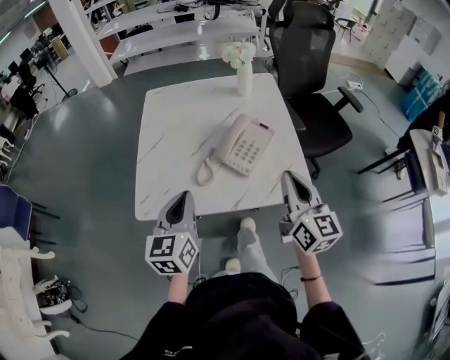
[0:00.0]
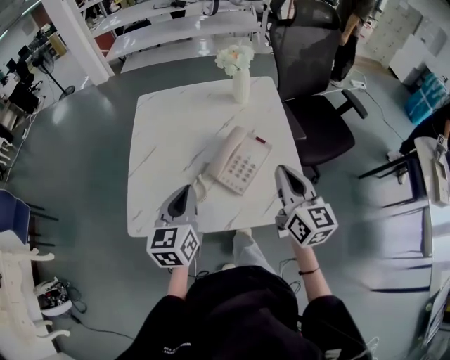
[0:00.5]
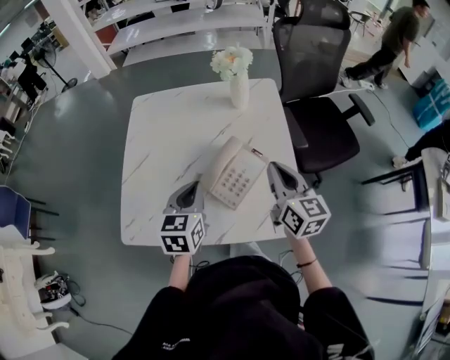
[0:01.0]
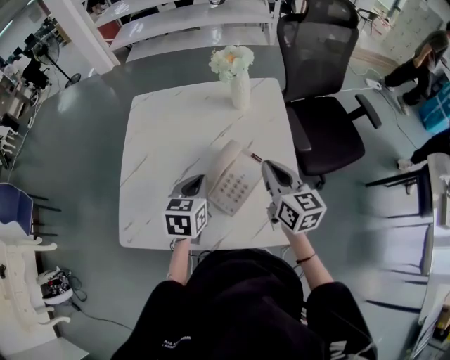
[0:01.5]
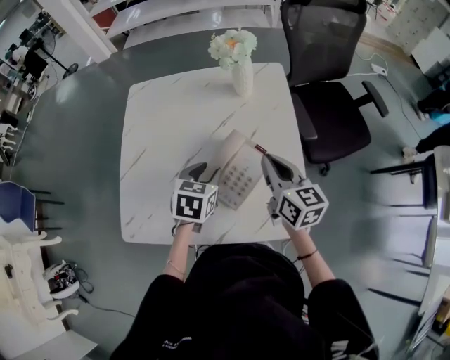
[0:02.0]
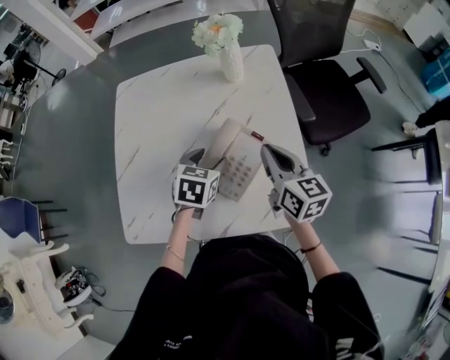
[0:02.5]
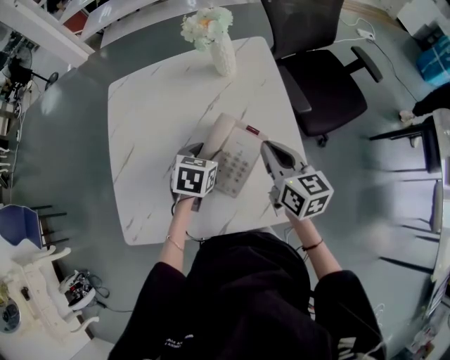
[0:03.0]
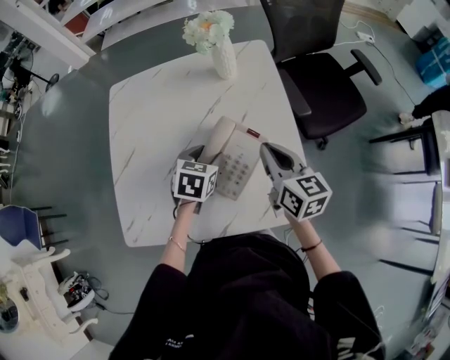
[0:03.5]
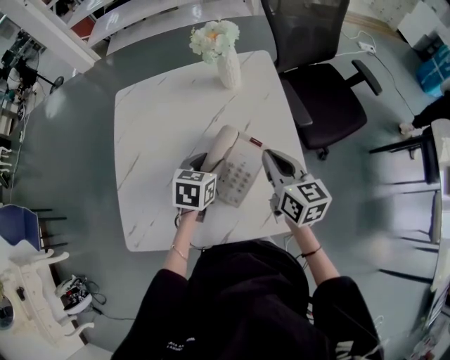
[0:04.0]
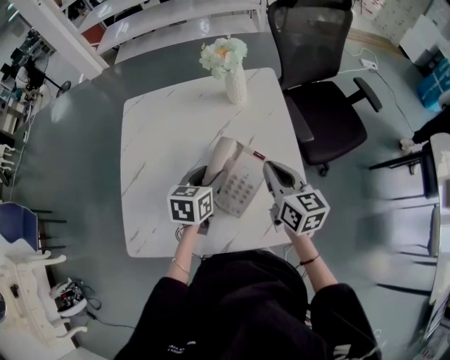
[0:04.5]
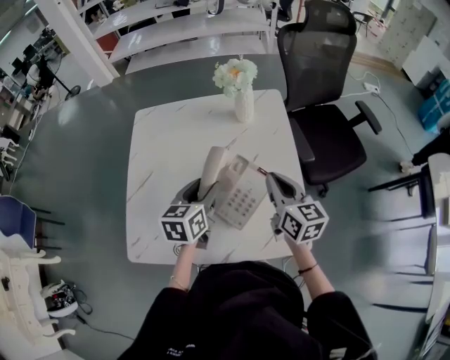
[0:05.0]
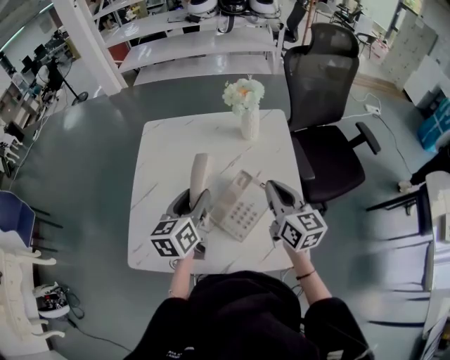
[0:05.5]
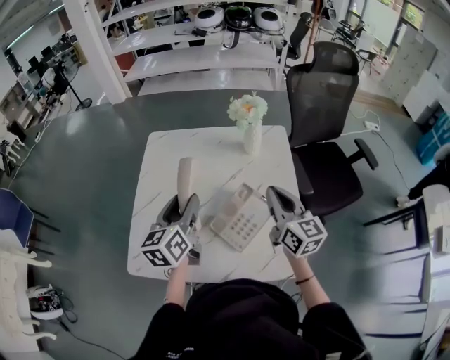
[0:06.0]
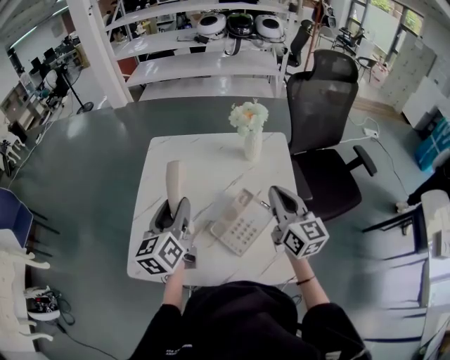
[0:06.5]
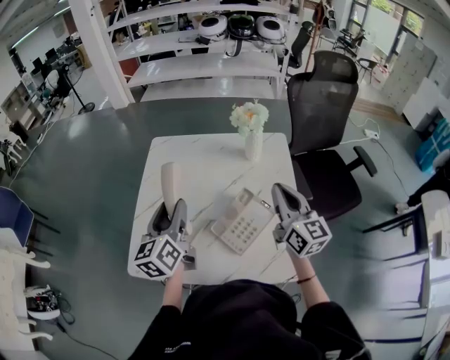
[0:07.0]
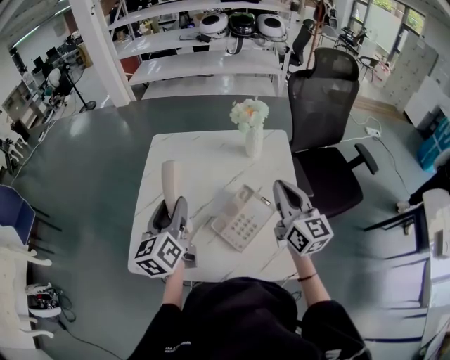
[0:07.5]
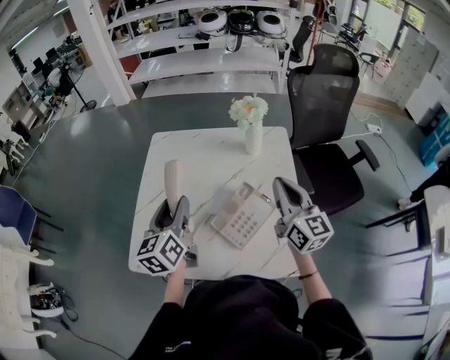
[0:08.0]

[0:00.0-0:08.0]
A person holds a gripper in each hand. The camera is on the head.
0:00.0 to 0:02.0: The left gripper shifts some 30 cm forward, to the right and downward, points its fingers about 30 degrees further downward, and opens up, while the right gripper moves forward and downward, approximately 25 cm.
0:02.0 to 0:04.0: The grippers make only small movements.
0:04.0 to 0:06.0: The left gripper is displaced upward and to the left by roughly 20 cm, and tips its fingers upward by about 30 degrees. Meanwhile the right gripper goes about 10 cm upward.
0:06.0 to 0:08.0: The grippers stay close to where they were, moving slightly.

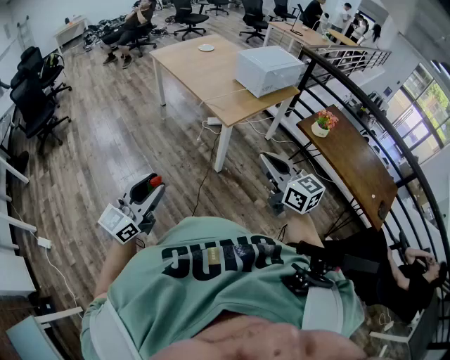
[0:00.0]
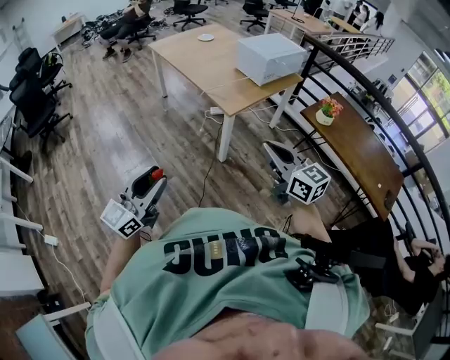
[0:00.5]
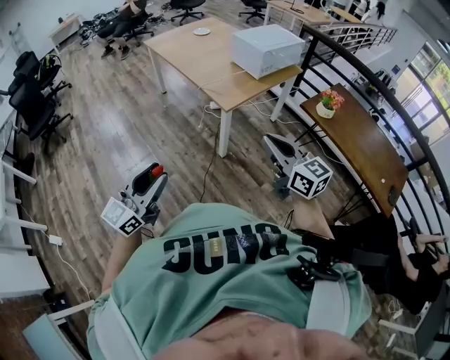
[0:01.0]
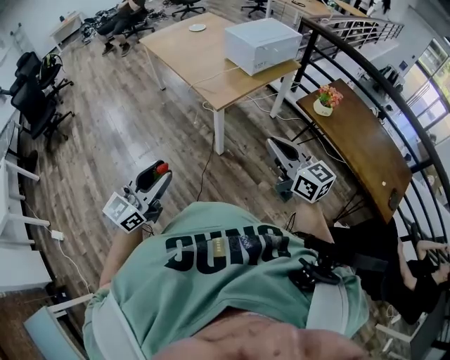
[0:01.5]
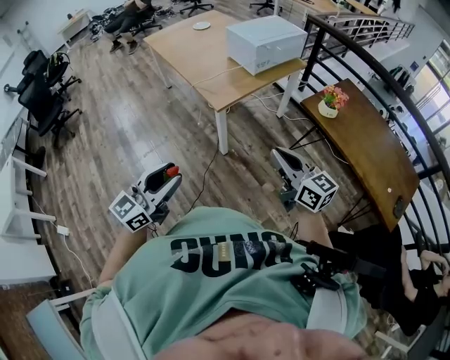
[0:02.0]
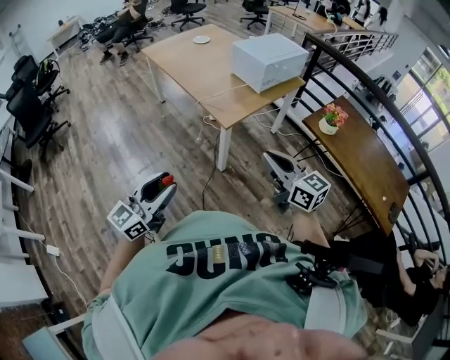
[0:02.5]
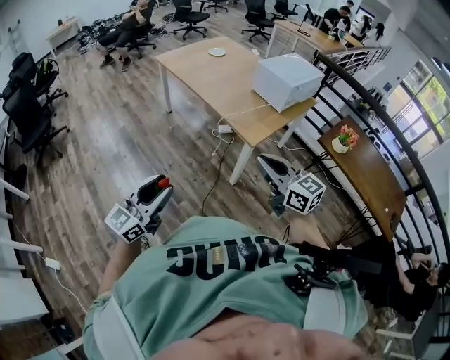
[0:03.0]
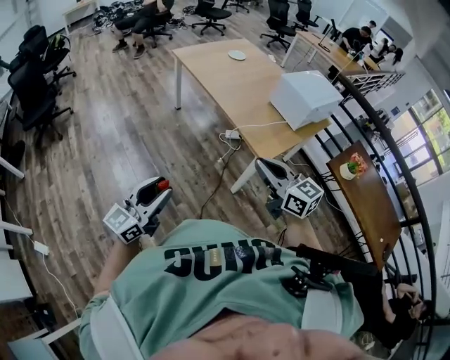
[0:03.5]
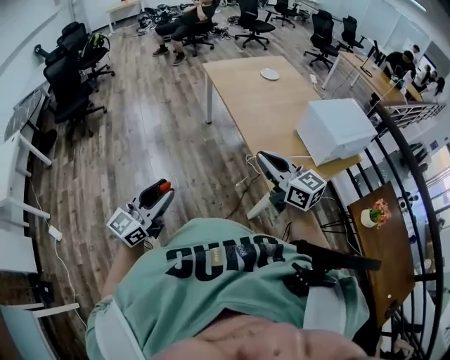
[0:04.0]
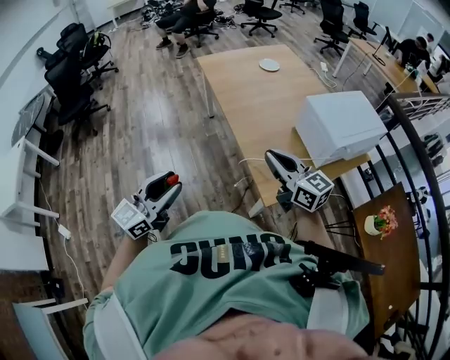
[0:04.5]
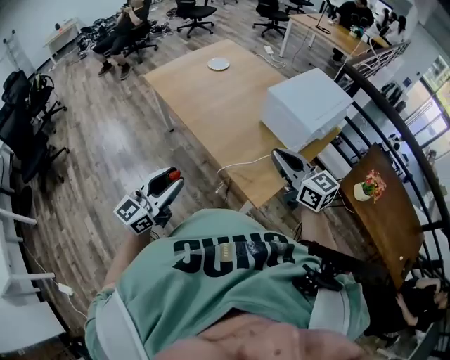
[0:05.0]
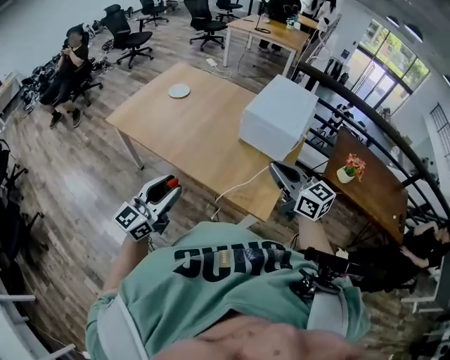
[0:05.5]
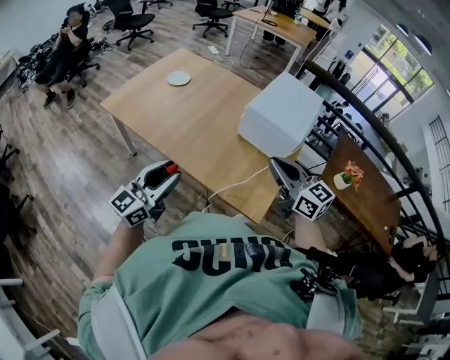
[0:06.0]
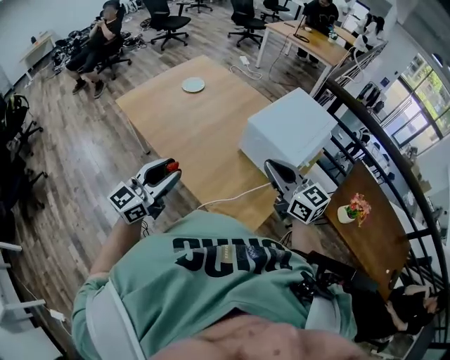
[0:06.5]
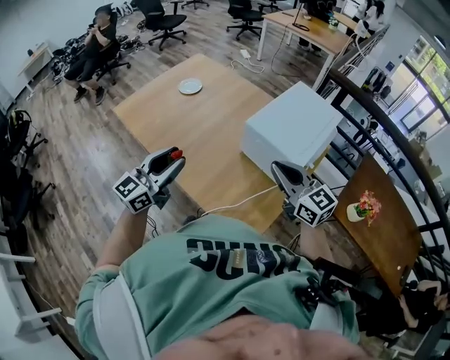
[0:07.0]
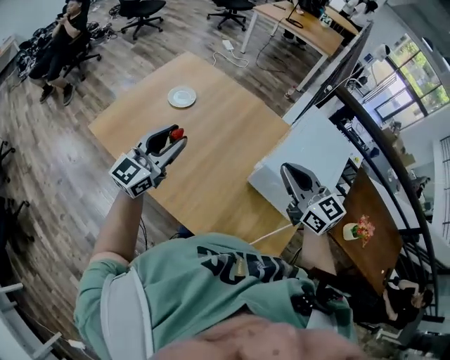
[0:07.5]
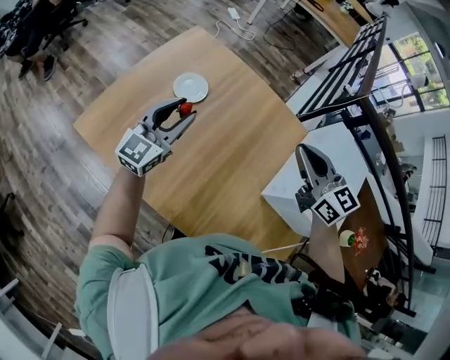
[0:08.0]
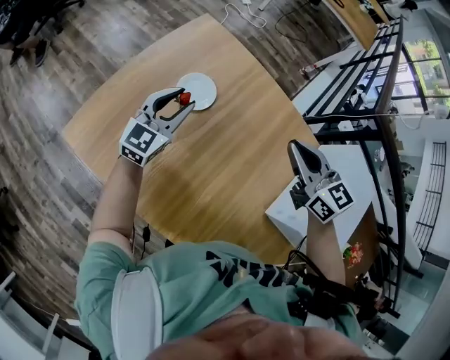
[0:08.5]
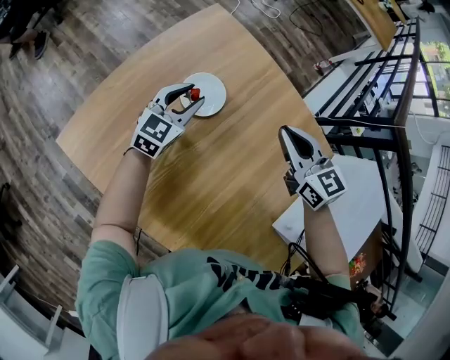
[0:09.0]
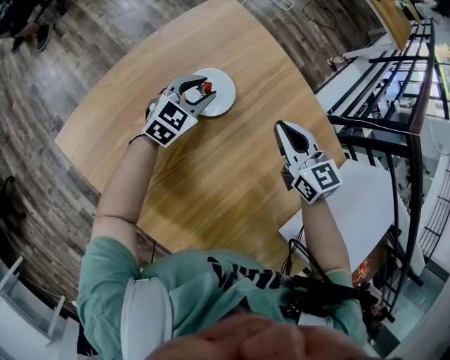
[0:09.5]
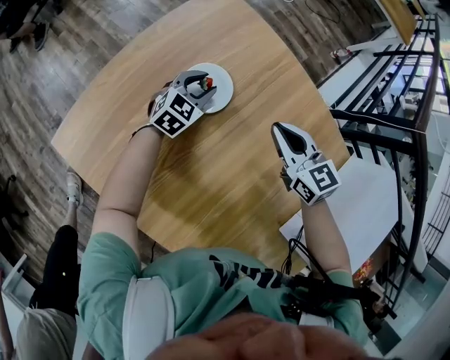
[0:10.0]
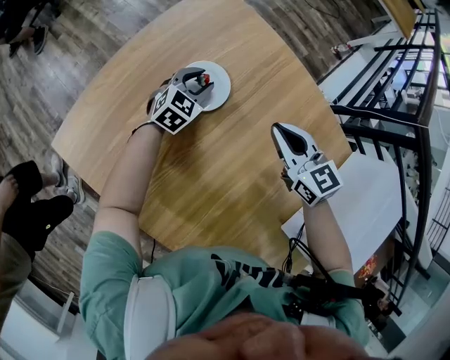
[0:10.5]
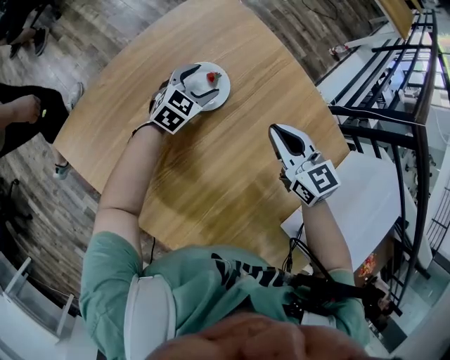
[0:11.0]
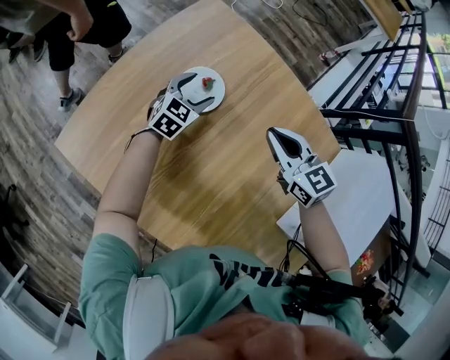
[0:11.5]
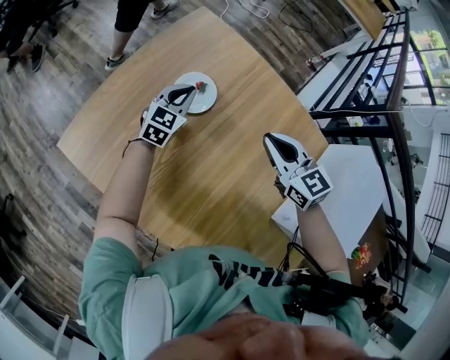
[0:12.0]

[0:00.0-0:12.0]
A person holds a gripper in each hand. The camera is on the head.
0:00.0 to 0:02.0: Both grippers move to the right and forward, about 20 cm.
0:02.0 to 0:04.0: The pair of grippers is taken to the left and forward, roughly 50 cm. The left gripper rotates about 20 degrees. The right gripper changes its angle by about 20 degrees.
0:04.0 to 0:06.0: The left gripper shifts by some 40 cm, and turns by some 40 degrees, while the right gripper ends up approximately 25 cm from where it was, and turns by roughly 40 degrees.
0:06.0 to 0:08.0: The two grippers travel together, forward, roughly 60 cm.
0:08.0 to 0:10.0: Both grippers travel together downward and forward, approximately 35 cm. The left gripper angles its fingers downward, by about 40 degrees.
0:10.0 to 0:12.0: The right gripper is displaced upward and backward by about 10 cm; the left gripper goes about 10 cm upward, and closes its fingers.

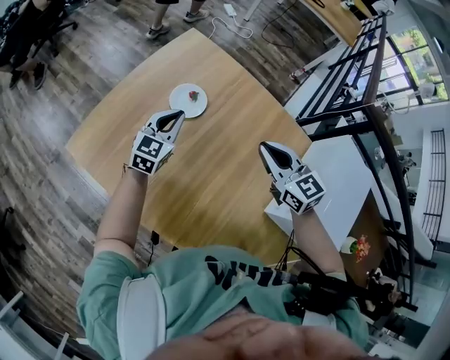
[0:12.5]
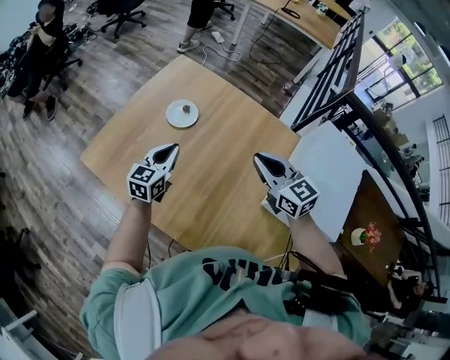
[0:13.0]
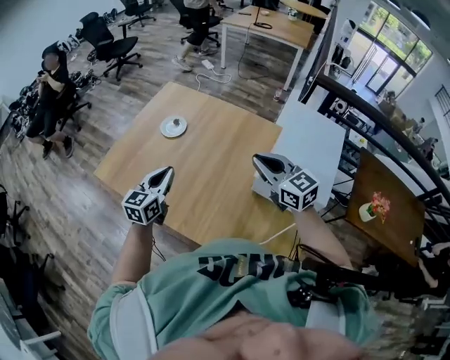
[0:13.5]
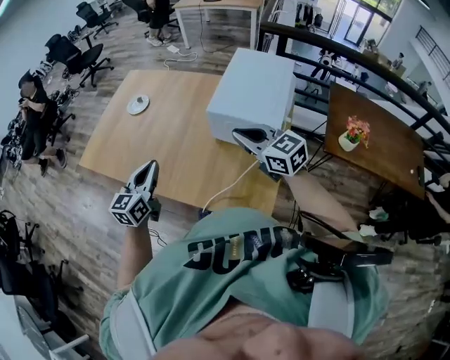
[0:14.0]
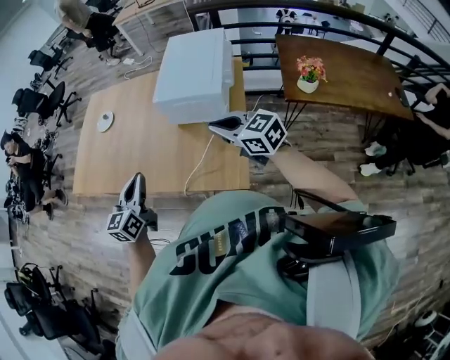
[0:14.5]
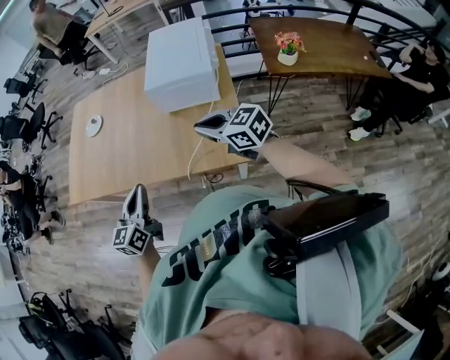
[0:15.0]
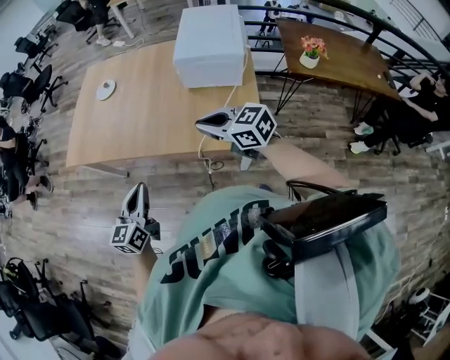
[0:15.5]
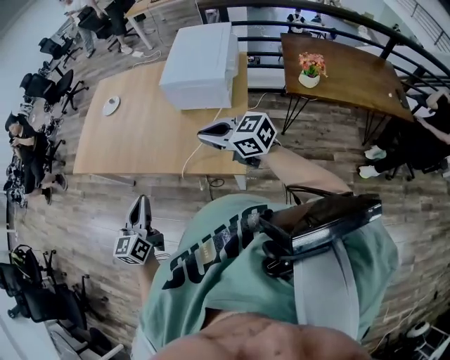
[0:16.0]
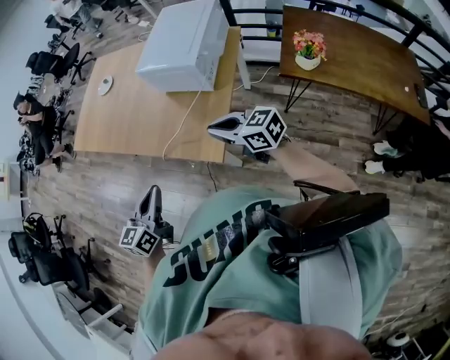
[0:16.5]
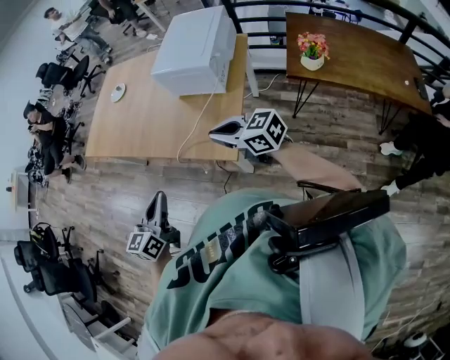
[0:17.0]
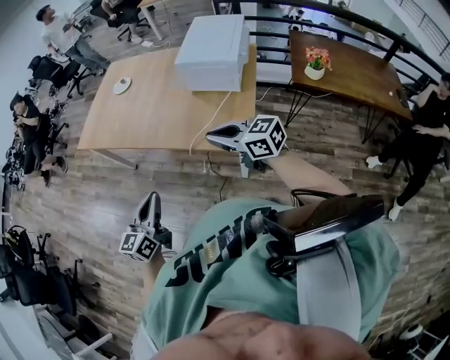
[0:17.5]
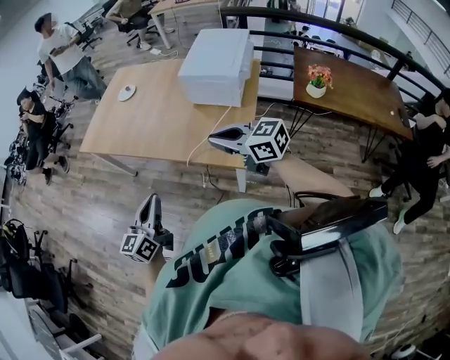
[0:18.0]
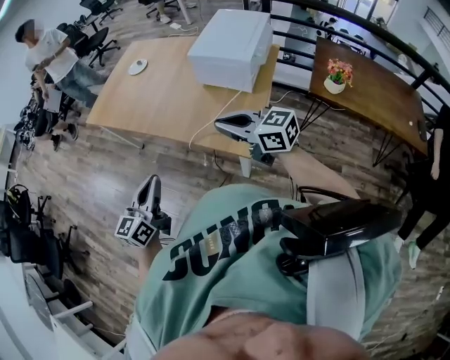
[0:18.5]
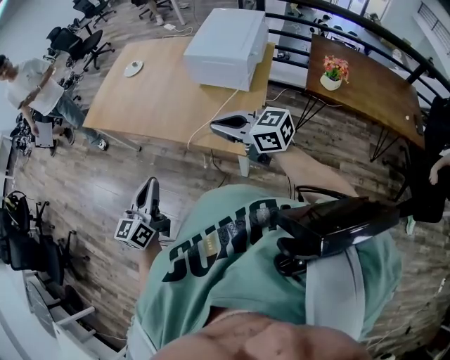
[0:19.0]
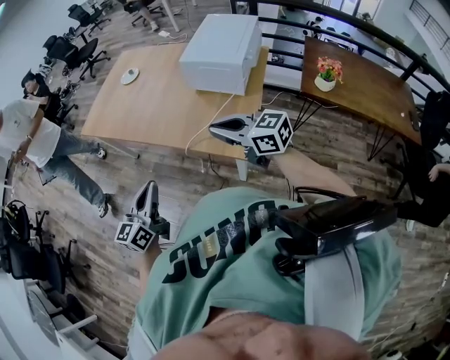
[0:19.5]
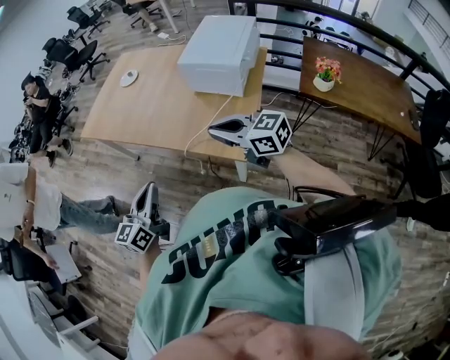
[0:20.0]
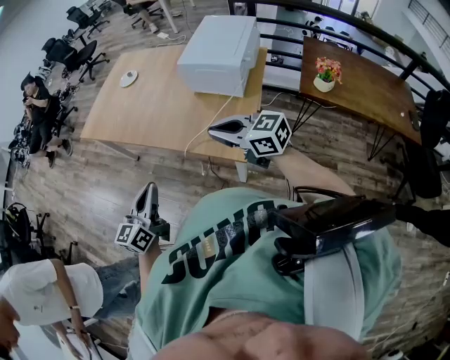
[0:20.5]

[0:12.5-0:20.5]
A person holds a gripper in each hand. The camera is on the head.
0:12.5 to 0:14.5: The two grippers travel together, backward and to the right, approximately 60 cm.
0:14.5 to 0:16.5: The right gripper moves backward and downward, roughly 15 cm, travels to the left and back again, some 20 cm each way, and swivels some 20 degrees. The left gripper heads backward and to the right, covering some 25 cm.
0:16.5 to 0:18.5: The right gripper travels to the left and upward by about 15 cm. The left gripper goes approximately 15 cm to the left.
0:18.5 to 0:20.5: The grippers stay close to where they were, moving slightly.
